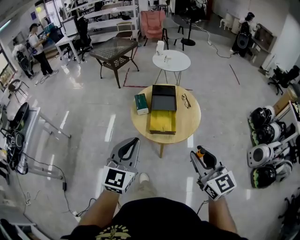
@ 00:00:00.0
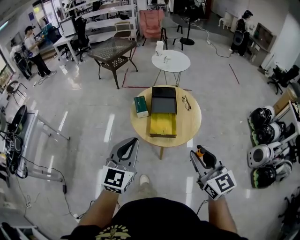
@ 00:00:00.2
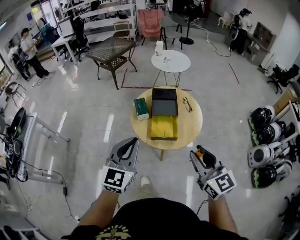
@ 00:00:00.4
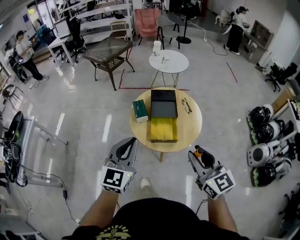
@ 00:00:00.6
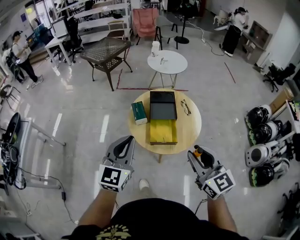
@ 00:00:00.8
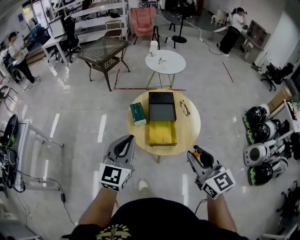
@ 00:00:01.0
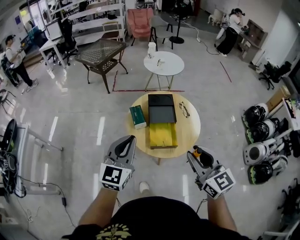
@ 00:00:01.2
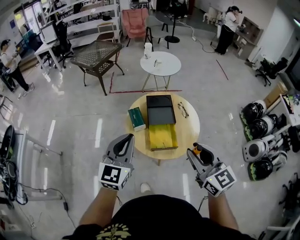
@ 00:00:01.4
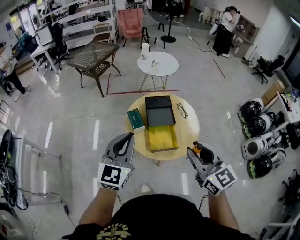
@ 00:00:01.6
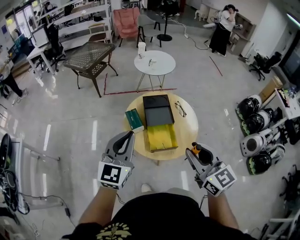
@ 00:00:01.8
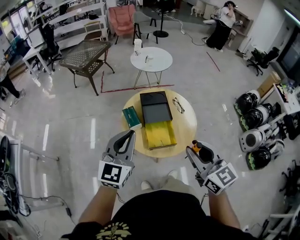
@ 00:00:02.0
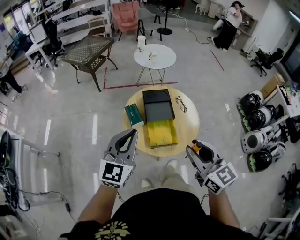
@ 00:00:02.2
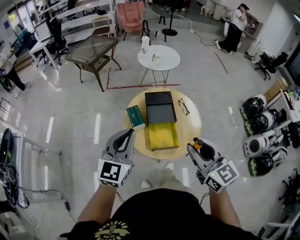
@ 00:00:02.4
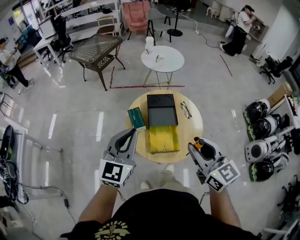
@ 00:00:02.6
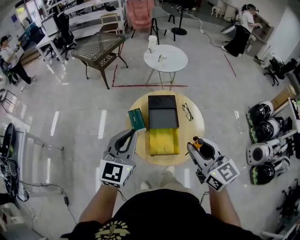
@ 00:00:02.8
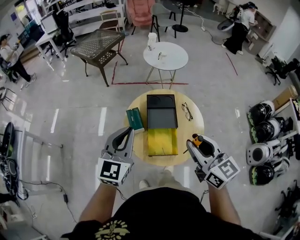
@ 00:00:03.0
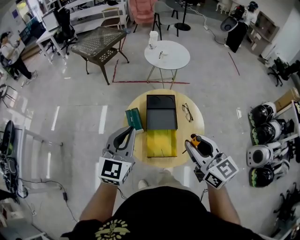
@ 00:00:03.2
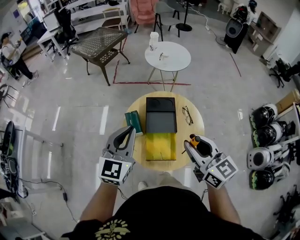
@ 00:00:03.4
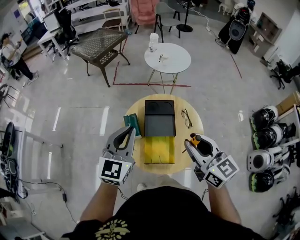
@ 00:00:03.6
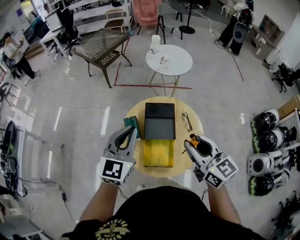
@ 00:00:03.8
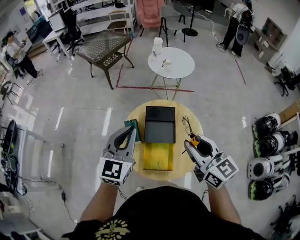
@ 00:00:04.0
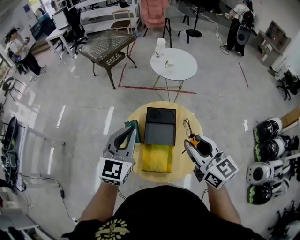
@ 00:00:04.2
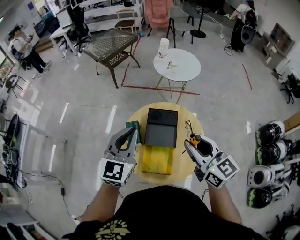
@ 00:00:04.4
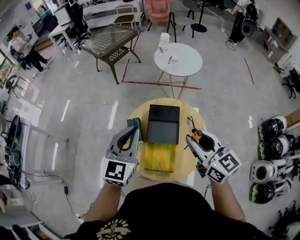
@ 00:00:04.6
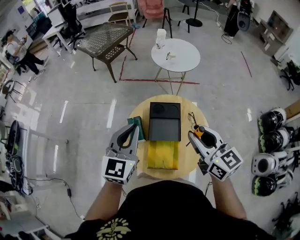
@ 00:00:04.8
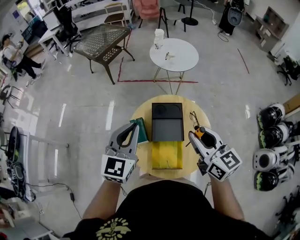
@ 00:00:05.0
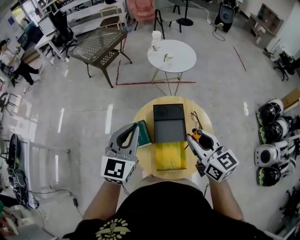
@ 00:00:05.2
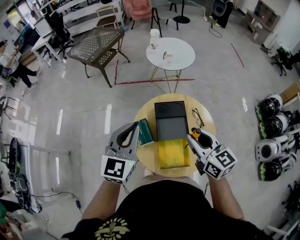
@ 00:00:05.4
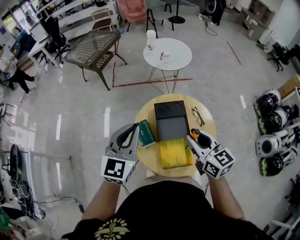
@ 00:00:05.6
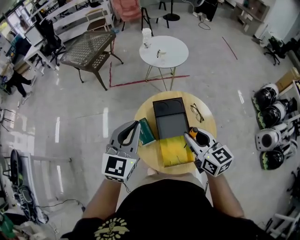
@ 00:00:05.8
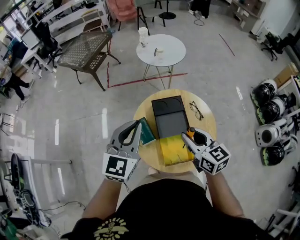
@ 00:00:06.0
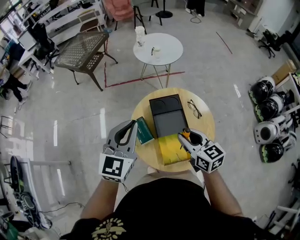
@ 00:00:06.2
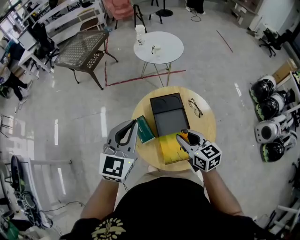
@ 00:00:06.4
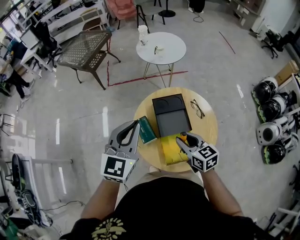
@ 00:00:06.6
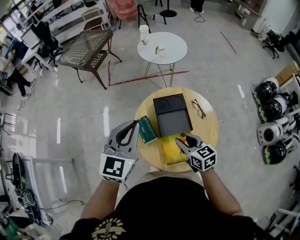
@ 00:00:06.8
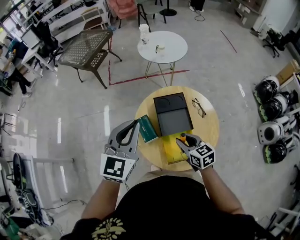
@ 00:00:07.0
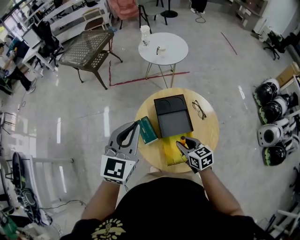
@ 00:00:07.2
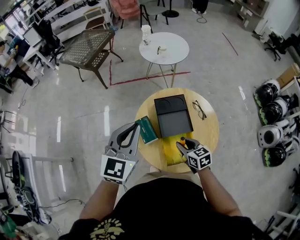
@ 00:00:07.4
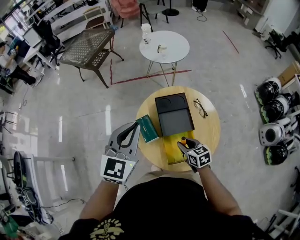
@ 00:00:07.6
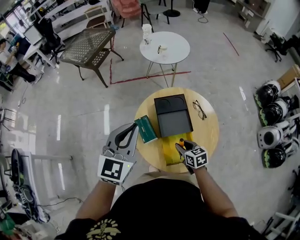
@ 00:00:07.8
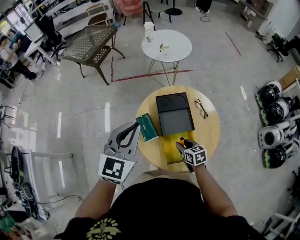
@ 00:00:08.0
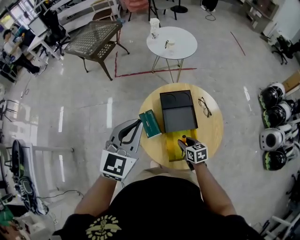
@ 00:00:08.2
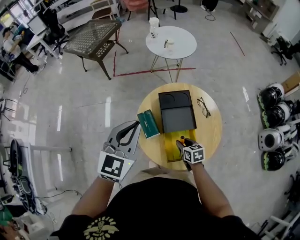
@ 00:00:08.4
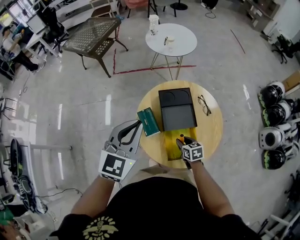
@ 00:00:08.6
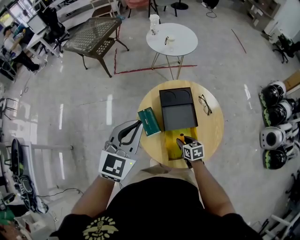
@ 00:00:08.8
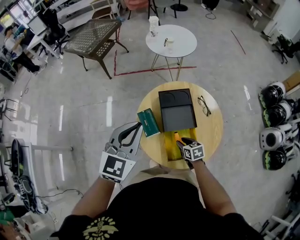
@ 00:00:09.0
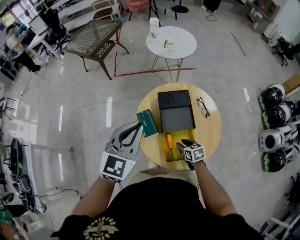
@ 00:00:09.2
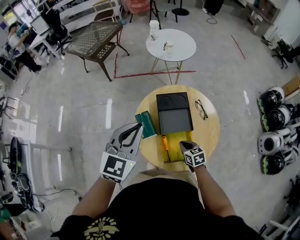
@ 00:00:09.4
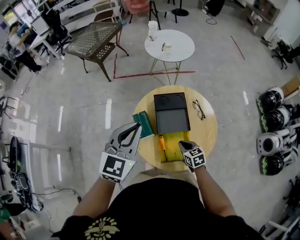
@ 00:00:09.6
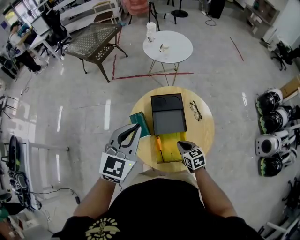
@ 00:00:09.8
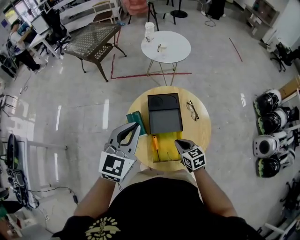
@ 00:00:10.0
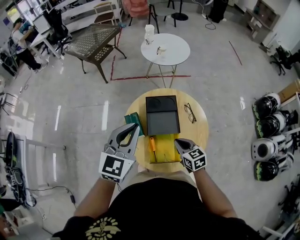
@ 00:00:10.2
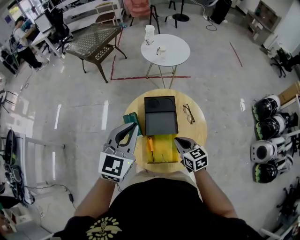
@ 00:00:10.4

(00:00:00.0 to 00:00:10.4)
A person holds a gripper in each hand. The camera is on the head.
00:00:00.0 - 00:00:01.4: The right gripper moves forward and to the left, some 15 cm. The left gripper moves forward, about 20 cm.
00:00:01.4 - 00:00:03.0: Both grippers move forward, about 10 cm.
00:00:03.0 - 00:00:04.4: The two grippers go roughly 15 cm forward and to the right.
00:00:04.4 - 00:00:06.0: The right gripper goes approximately 15 cm to the left and downward, and rotates approximately 20 degrees; the left gripper is displaced to the left by approximately 5 cm.
00:00:06.0 - 00:00:07.4: The right gripper goes approximately 15 cm downward.
00:00:07.4 - 00:00:09.0: The right gripper shifts roughly 15 cm downward.
00:00:09.0 - 00:00:10.4: The left gripper heads to the right, covering about 10 cm; the right gripper is displaced upward and to the right by some 20 cm, swivels approximately 20 degrees, and closes.

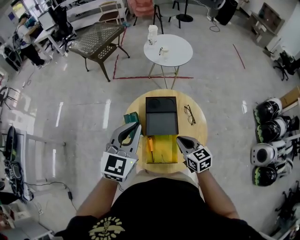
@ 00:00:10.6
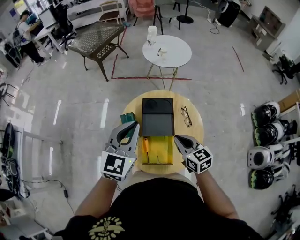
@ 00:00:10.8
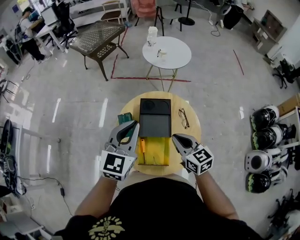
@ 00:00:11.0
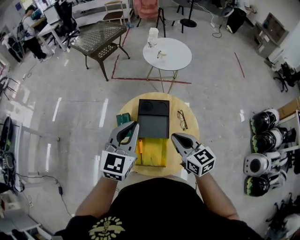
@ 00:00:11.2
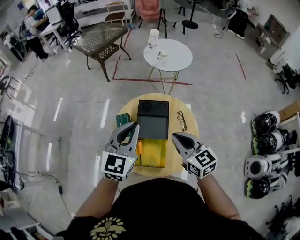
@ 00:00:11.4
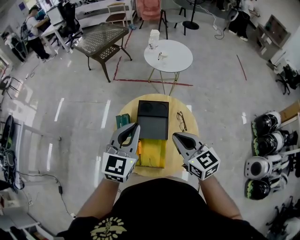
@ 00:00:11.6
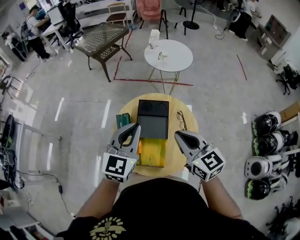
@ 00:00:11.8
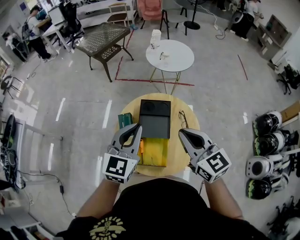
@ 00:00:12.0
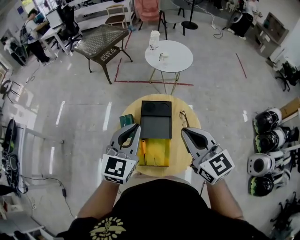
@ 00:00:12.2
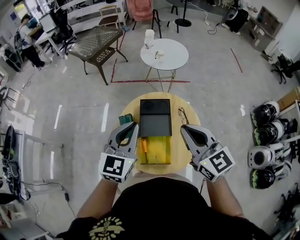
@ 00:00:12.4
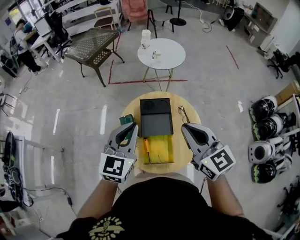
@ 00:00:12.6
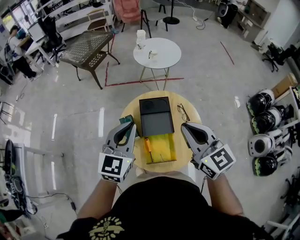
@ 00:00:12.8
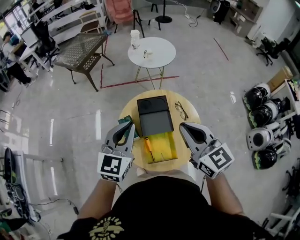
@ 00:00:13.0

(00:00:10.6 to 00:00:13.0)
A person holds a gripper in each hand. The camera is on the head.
00:00:10.6 - 00:00:11.8: The right gripper moves upward, about 15 cm; the left gripper travels to the right by about 5 cm.
00:00:11.8 - 00:00:13.0: The left gripper is displaced to the left by about 10 cm, while the right gripper is displaced to the left and upward by approximately 10 cm.

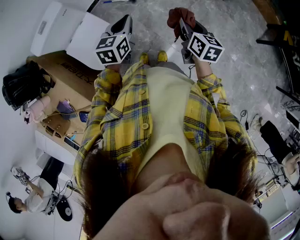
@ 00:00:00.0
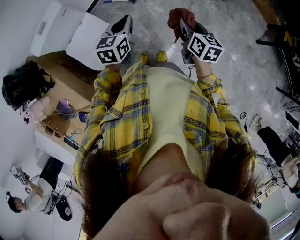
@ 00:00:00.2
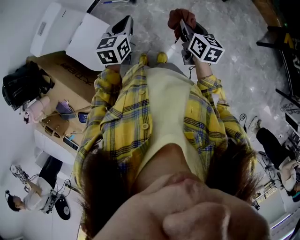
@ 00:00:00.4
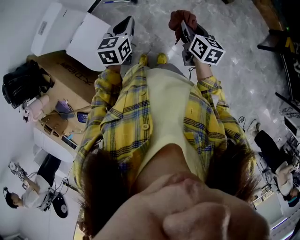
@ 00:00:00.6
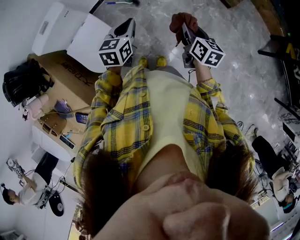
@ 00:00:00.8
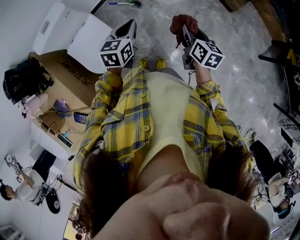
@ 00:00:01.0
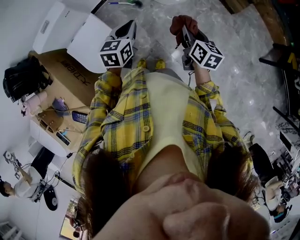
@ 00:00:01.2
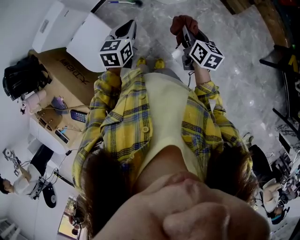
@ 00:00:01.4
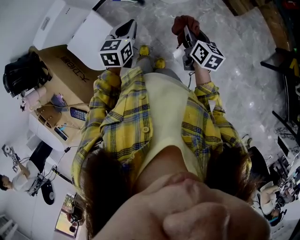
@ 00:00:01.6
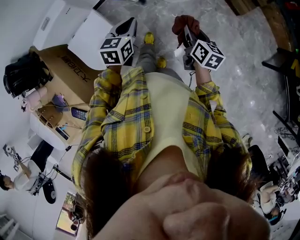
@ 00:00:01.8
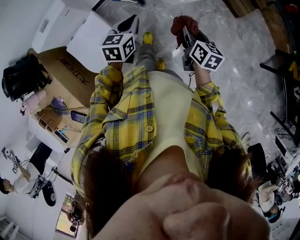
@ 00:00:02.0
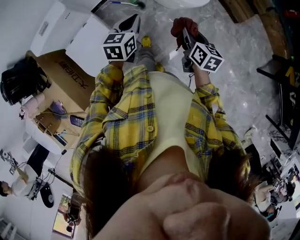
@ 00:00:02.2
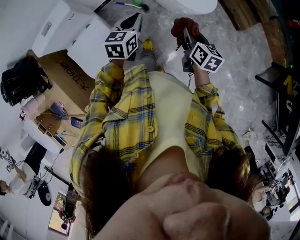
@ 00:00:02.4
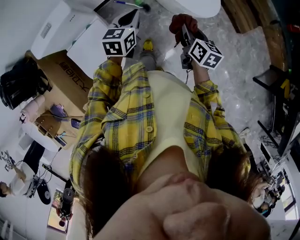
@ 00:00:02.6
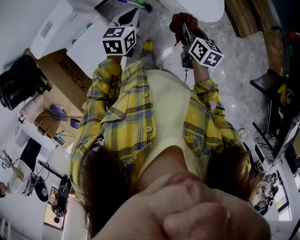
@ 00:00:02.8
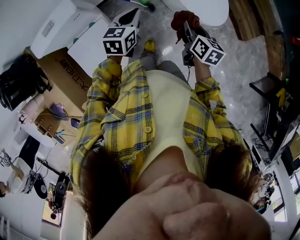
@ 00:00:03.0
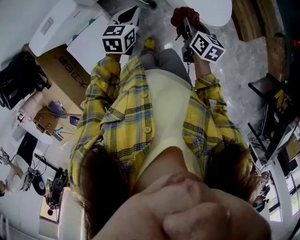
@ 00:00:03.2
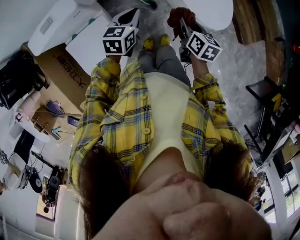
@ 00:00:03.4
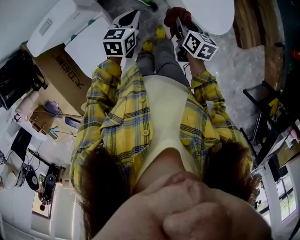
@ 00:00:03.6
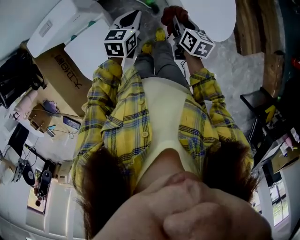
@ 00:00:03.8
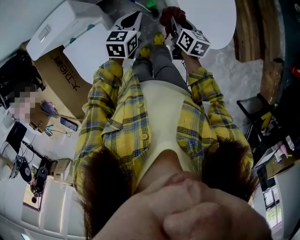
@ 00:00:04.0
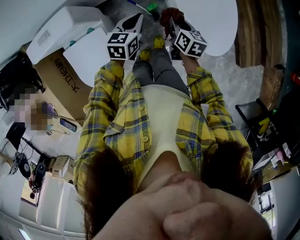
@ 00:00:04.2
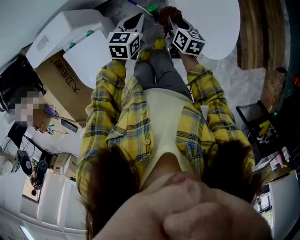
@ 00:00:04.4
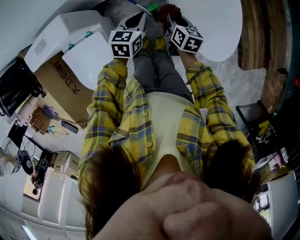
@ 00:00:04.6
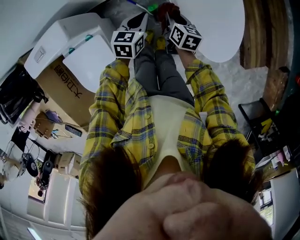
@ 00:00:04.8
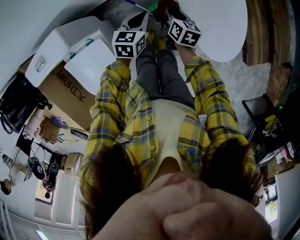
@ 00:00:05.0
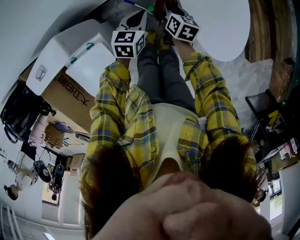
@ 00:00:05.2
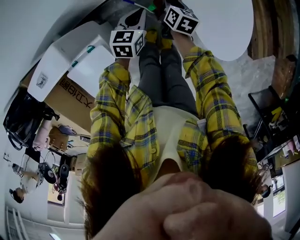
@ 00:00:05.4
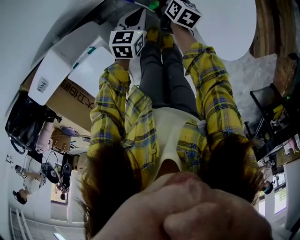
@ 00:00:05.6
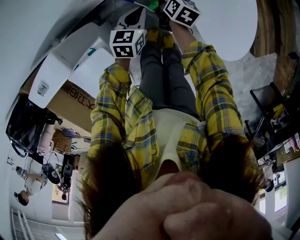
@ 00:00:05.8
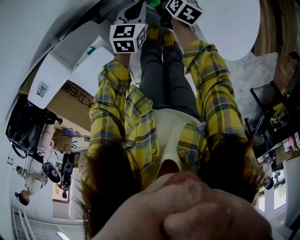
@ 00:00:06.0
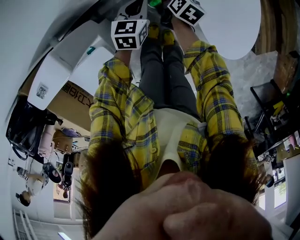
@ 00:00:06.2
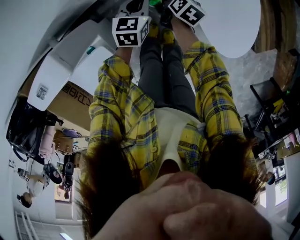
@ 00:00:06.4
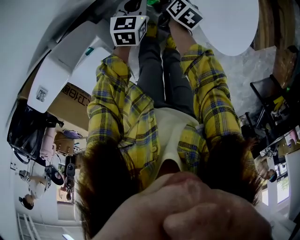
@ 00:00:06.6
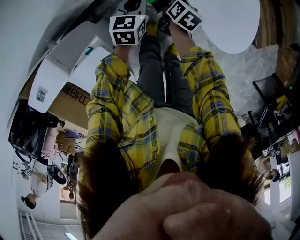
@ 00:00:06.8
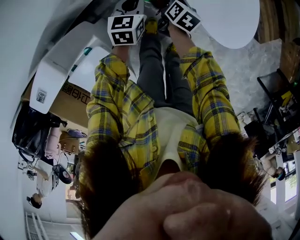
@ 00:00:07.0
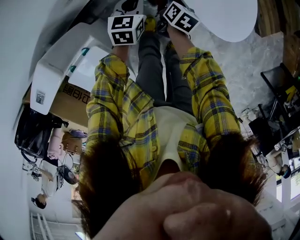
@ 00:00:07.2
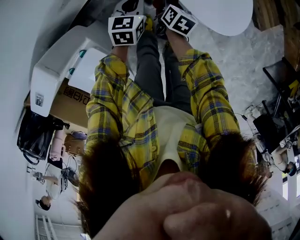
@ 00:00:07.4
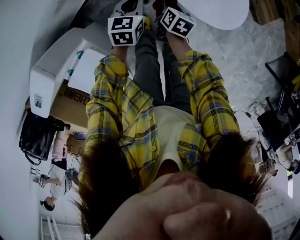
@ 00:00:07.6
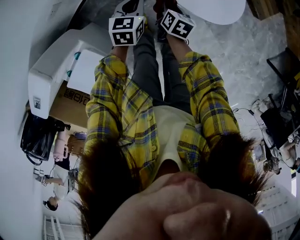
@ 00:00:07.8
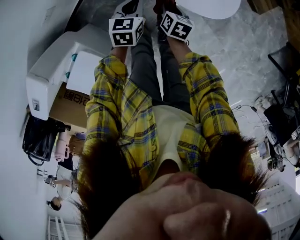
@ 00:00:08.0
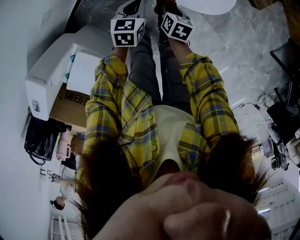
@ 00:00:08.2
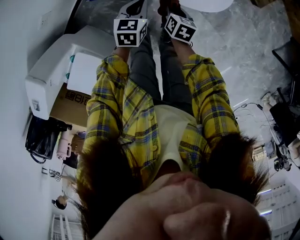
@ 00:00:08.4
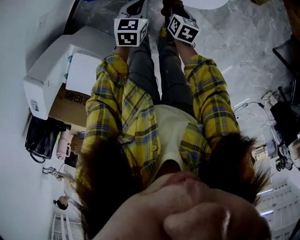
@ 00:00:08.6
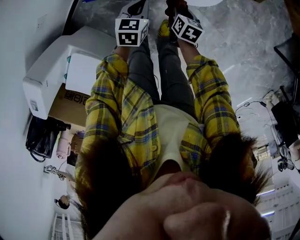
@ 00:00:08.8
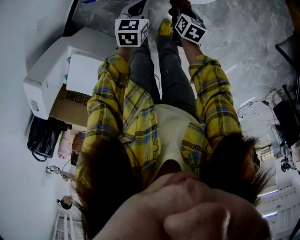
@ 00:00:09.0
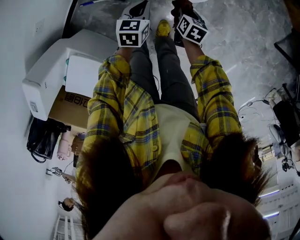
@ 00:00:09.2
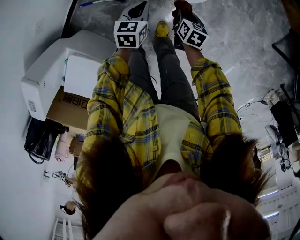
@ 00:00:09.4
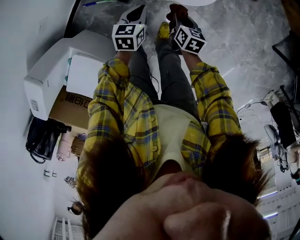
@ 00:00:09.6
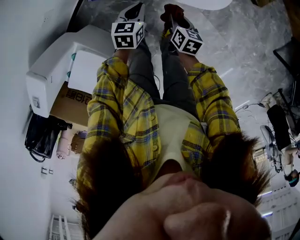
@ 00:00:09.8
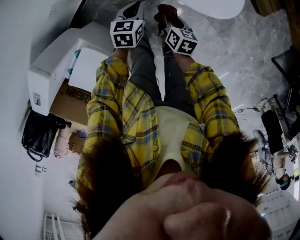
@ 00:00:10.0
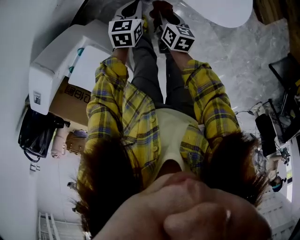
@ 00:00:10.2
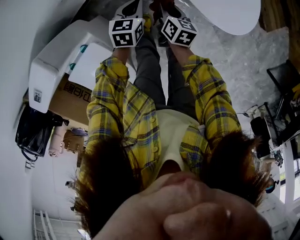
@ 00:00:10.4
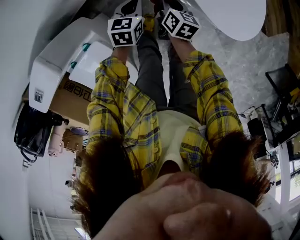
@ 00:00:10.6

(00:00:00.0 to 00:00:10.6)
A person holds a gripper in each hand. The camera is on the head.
00:00:00.0 - 00:00:01.6: The left gripper moves to the right, roughly 5 cm; the right gripper heads forward and to the right, covering some 10 cm.
00:00:01.6 - 00:00:03.0: Both grippers move forward and to the left, some 25 cm.
00:00:03.0 - 00:00:04.6: The grippers both shift forward and downward by roughly 25 cm.
00:00:04.6 - 00:00:06.0: The left gripper travels downward, forward and to the left by roughly 15 cm; the right gripper goes roughly 20 cm forward and downward, and swivels some 20 degrees.
00:00:06.0 - 00:00:07.6: The left gripper shifts some 15 cm to the right; the right gripper goes approximately 20 cm to the right and backward.
00:00:07.6 - 00:00:09.0: The two grippers go about 20 cm to the right.
00:00:09.0 - 00:00:10.6: Both grippers move to the left, about 30 cm. The right gripper swivels roughly 20 degrees. Meanwhile the left gripper swivels about 20 degrees.
